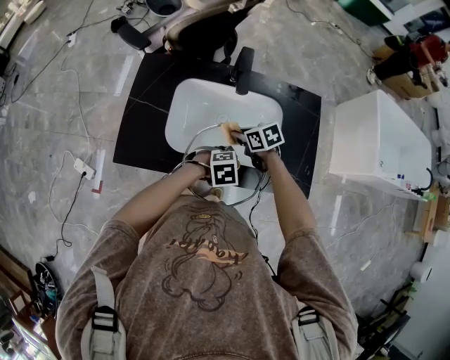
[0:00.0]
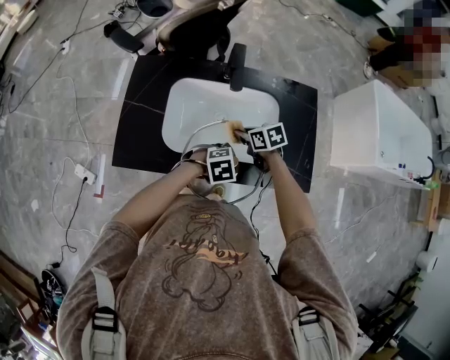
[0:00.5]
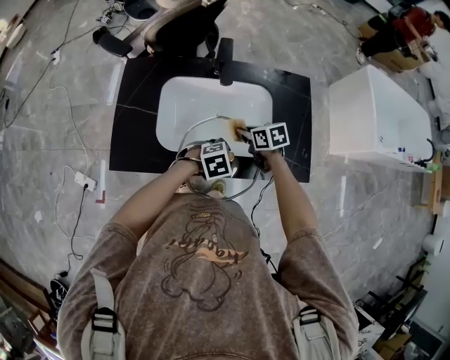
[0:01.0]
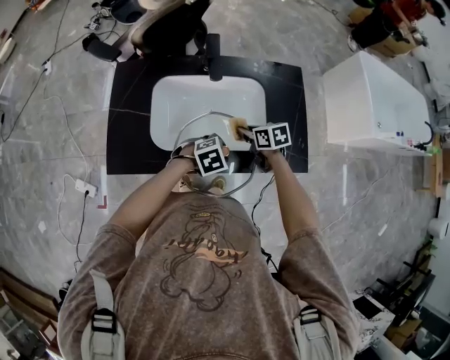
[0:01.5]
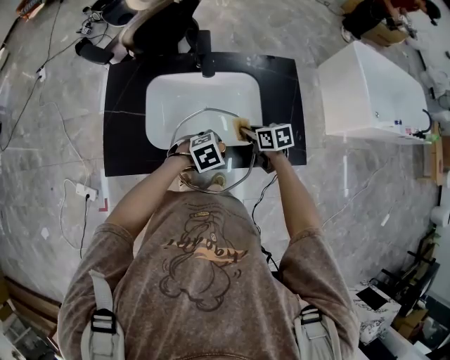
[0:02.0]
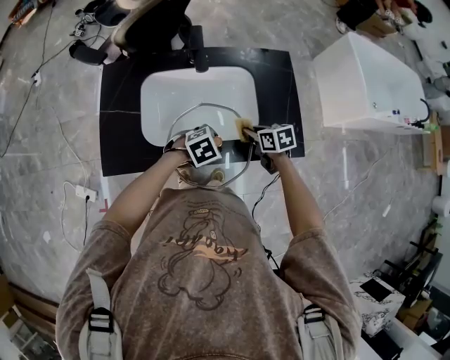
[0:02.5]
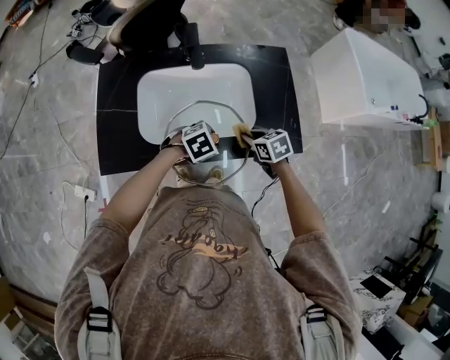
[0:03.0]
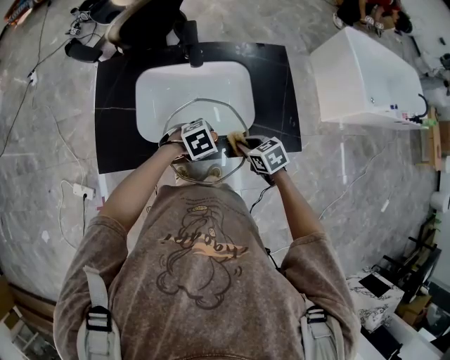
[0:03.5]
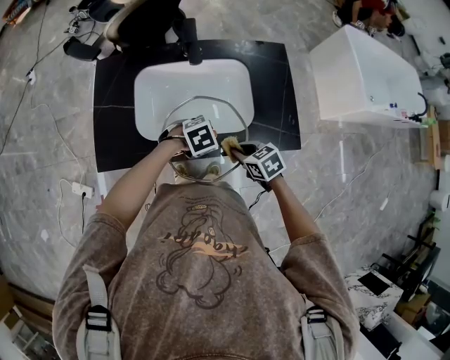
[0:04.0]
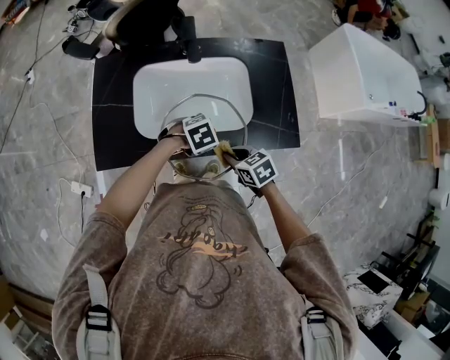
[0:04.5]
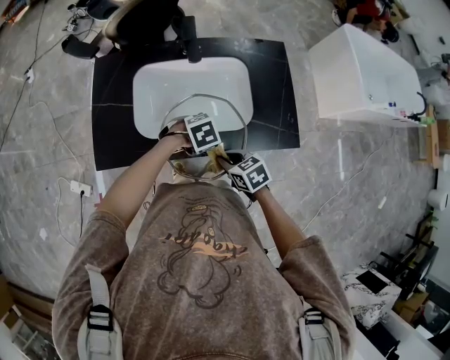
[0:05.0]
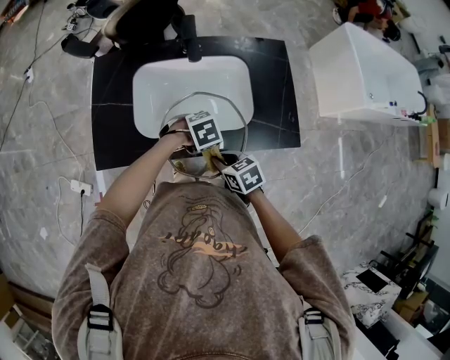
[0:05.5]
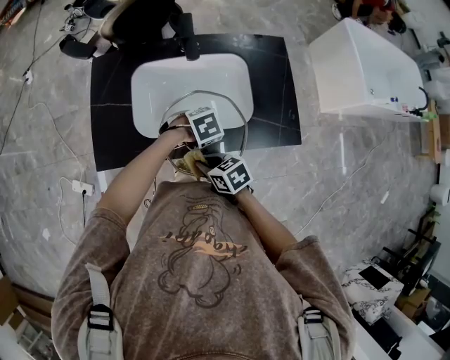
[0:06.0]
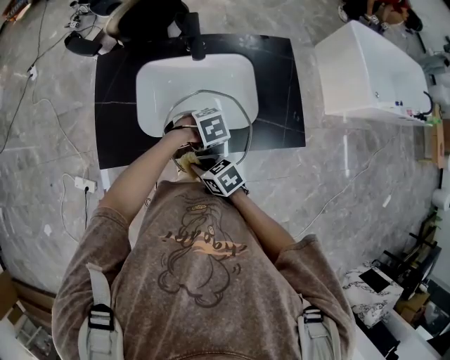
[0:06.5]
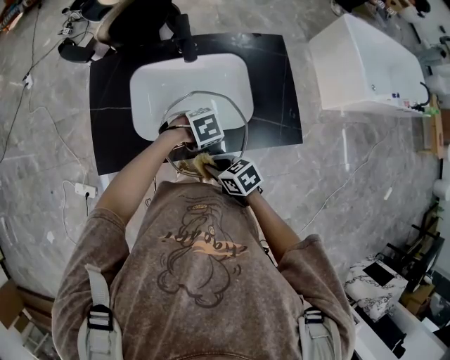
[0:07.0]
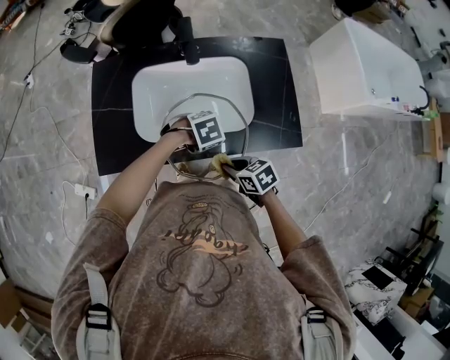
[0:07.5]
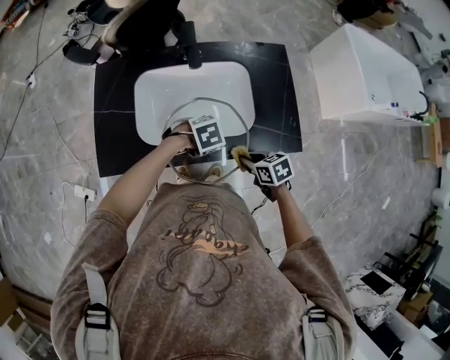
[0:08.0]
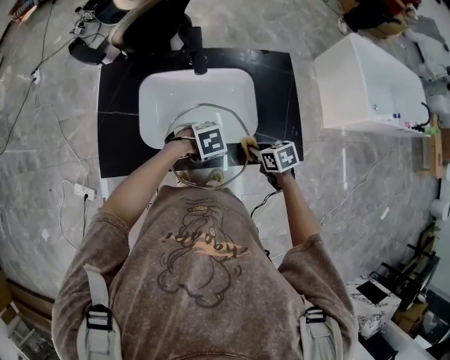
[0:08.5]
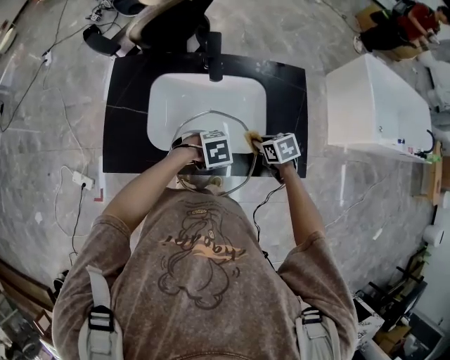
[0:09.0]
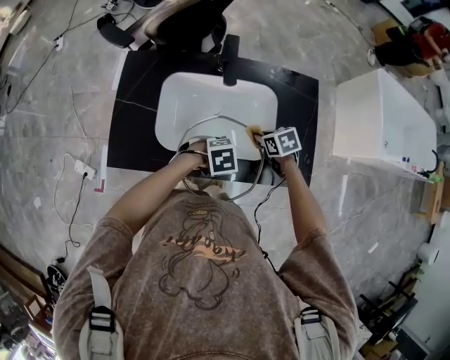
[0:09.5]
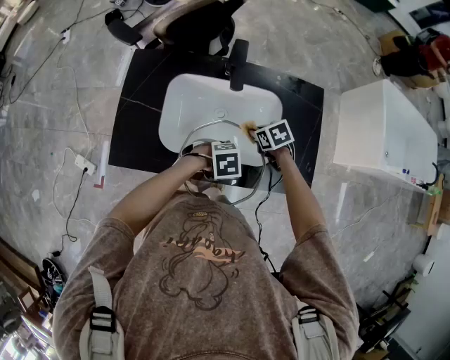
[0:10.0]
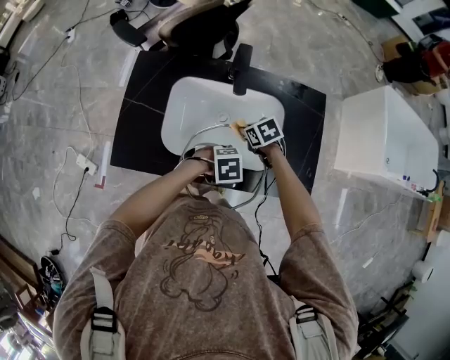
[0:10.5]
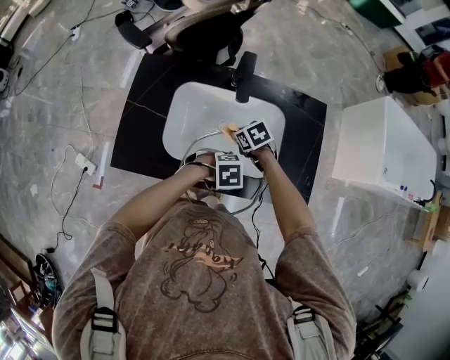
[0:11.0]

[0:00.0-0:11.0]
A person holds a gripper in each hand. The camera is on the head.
0:00.0 to 0:02.0: The right gripper shifts by approximately 10 cm, and swivels about 20 degrees.
0:02.0 to 0:03.5: The right gripper changes place by roughly 10 cm.
0:03.5 to 0:05.5: The right gripper changes place by some 10 cm.
0:07.5 to 0:09.0: The right gripper moves approximately 20 cm.
0:09.0 to 0:11.0: The right gripper moves approximately 15 cm.

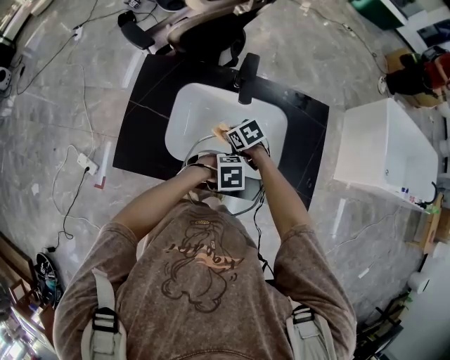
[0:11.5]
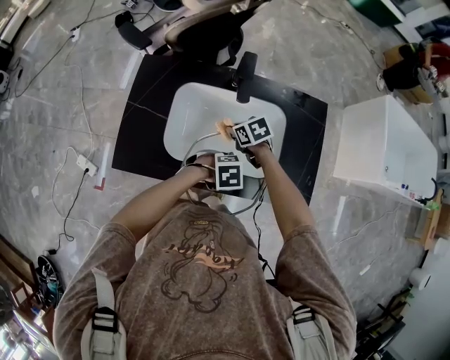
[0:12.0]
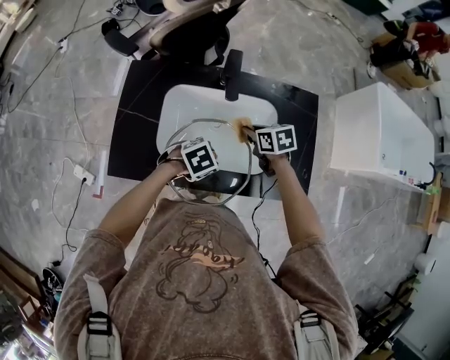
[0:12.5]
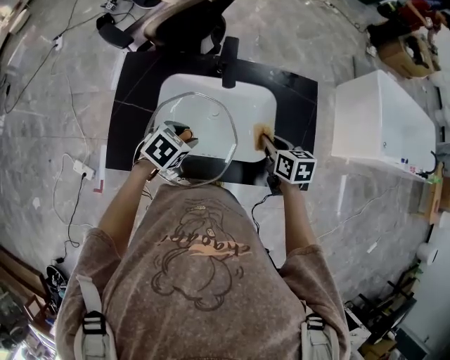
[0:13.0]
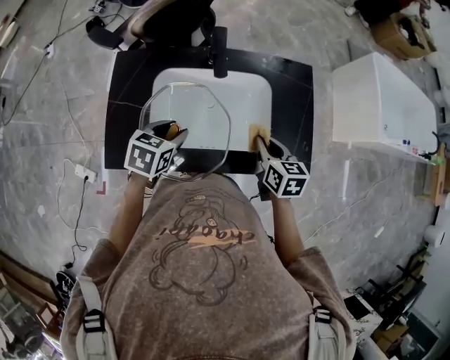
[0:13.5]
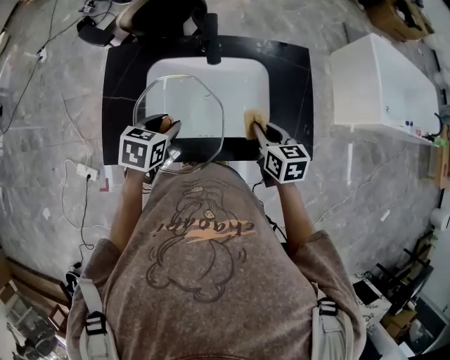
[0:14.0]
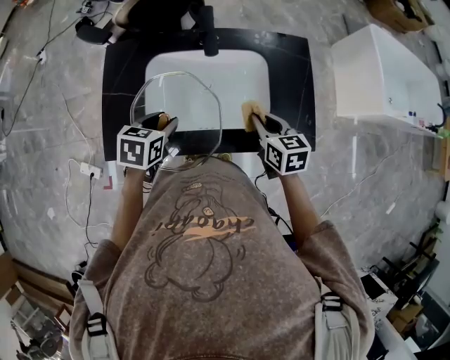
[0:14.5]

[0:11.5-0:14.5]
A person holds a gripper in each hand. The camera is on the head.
0:11.5 to 0:13.0: The left gripper shifts by some 15 cm, and rotates roughly 40 degrees; the right gripper moves about 20 cm, and changes its angle by about 40 degrees.
0:13.0 to 0:14.5: The right gripper goes about 5 cm backward; the left gripper ends up some 5 cm from where it was, and changes its angle by some 20 degrees.

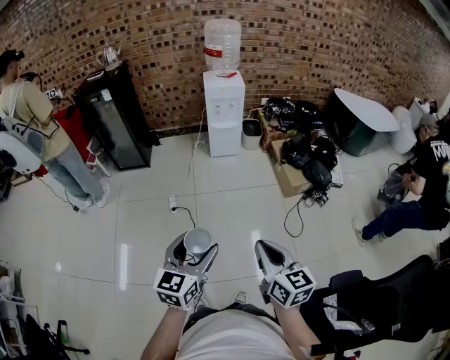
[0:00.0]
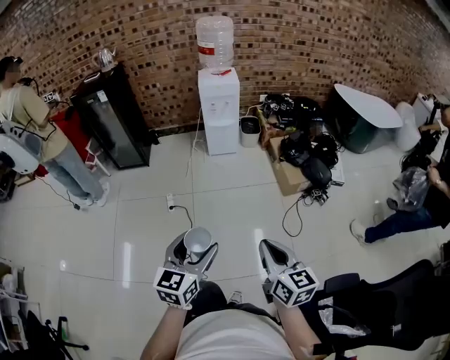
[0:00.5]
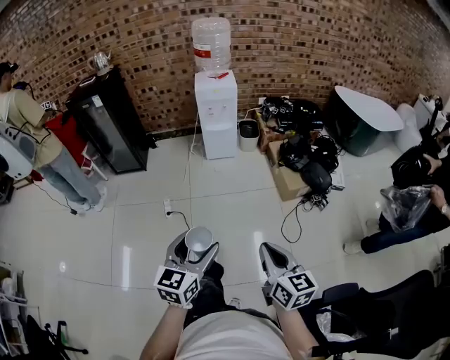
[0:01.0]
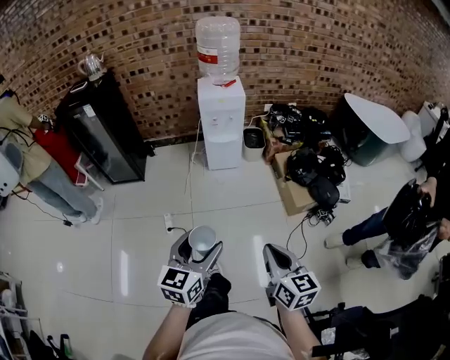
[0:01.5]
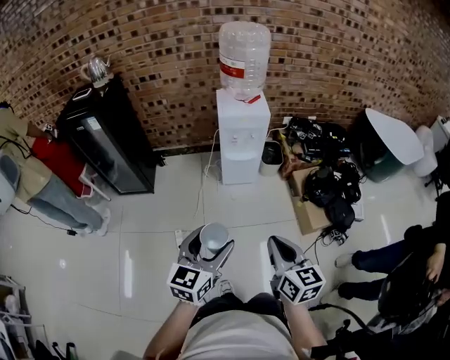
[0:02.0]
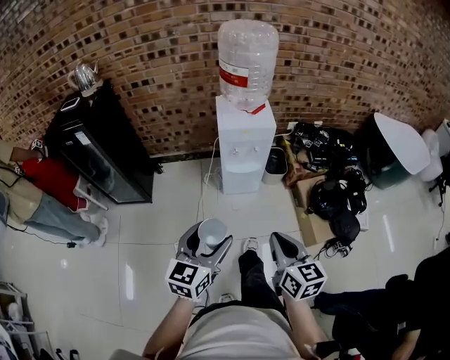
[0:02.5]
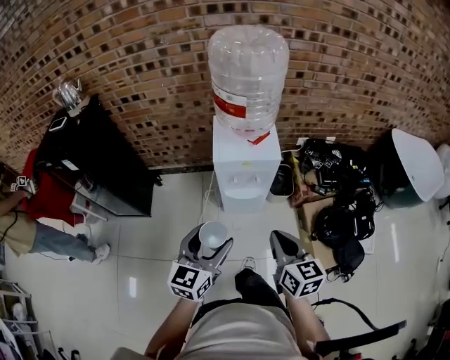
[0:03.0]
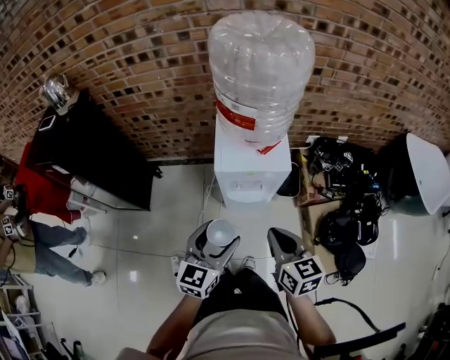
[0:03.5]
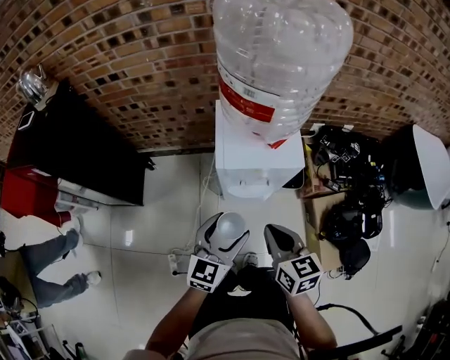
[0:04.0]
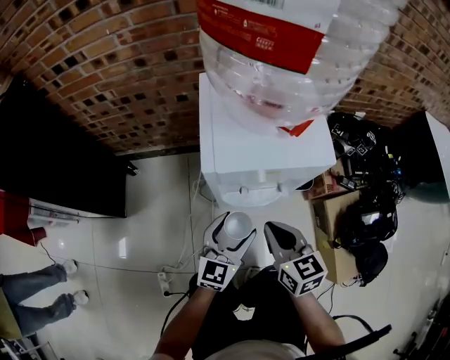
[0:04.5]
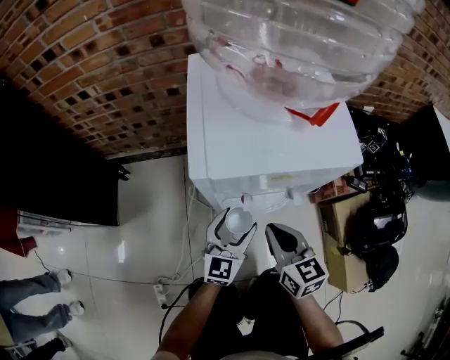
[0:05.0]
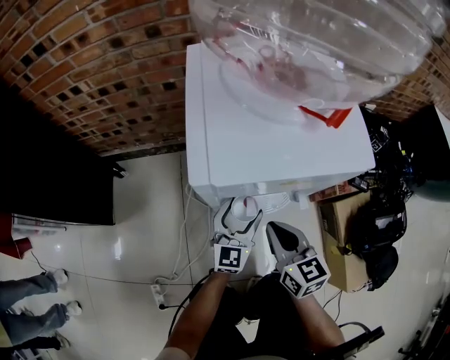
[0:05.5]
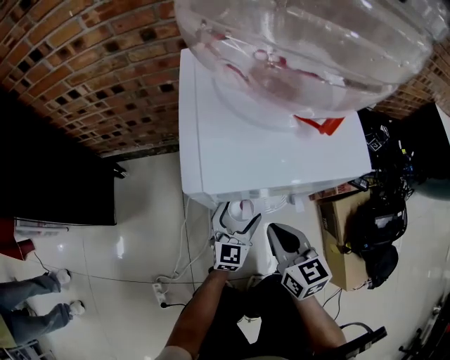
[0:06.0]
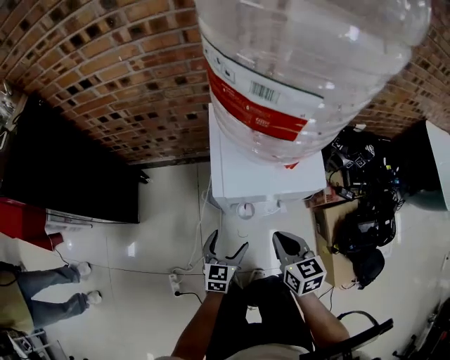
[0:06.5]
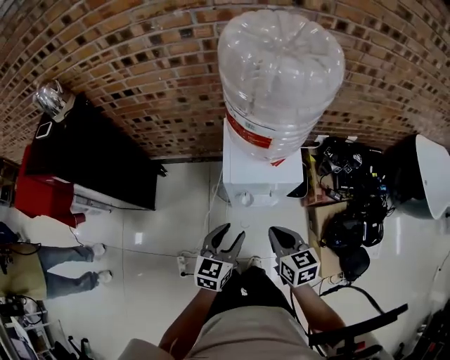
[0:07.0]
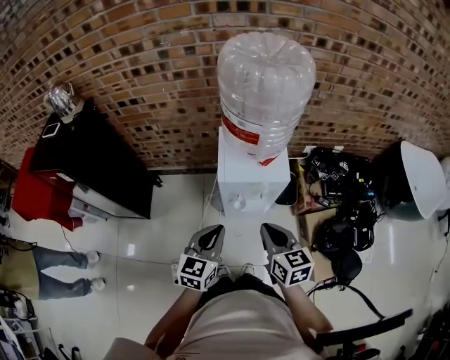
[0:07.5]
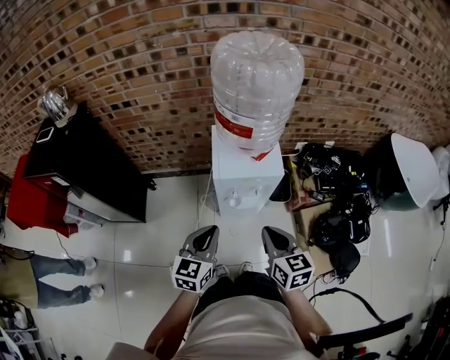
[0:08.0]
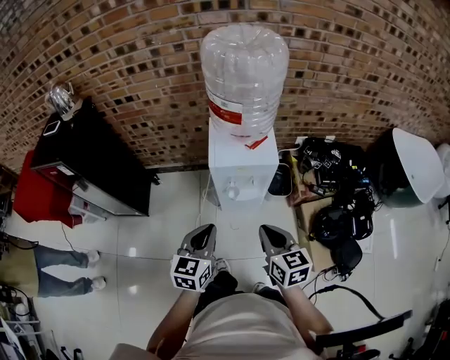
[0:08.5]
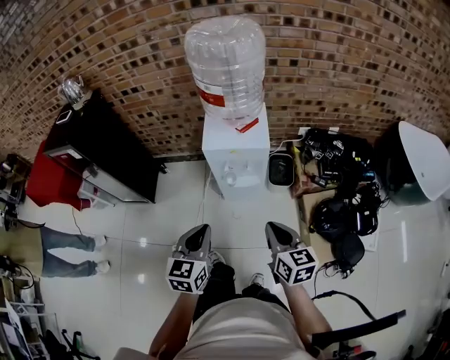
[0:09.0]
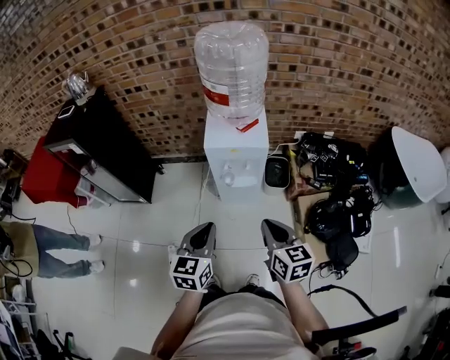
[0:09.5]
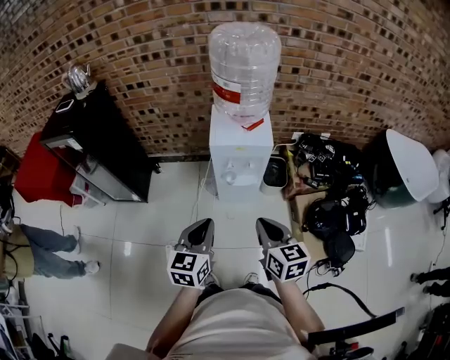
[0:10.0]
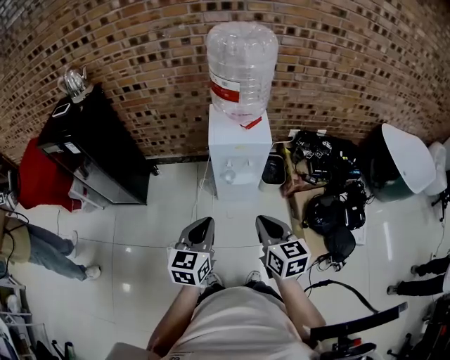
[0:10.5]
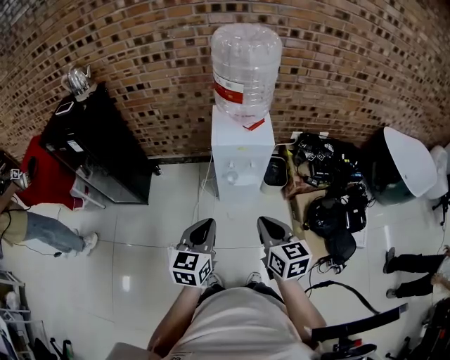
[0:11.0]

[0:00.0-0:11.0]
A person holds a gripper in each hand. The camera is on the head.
0:00.0 to 0:02.0: The pair of grippers is taken forward, roughly 40 cm.
0:02.0 to 0:03.5: The pair of grippers is taken forward, some 50 cm.
0:03.5 to 0:05.5: The two grippers go roughly 40 cm downward and forward.
0:05.5 to 0:07.5: The right gripper shifts about 40 cm upward. The left gripper travels upward and backward by roughly 50 cm, and closes up.
0:07.5 to 0:09.0: The left gripper heads backward, covering some 15 cm, while the right gripper is displaced backward and to the right by about 20 cm.
0:09.0 to 0:11.0: The left gripper goes about 5 cm to the left, while the right gripper travels to the left by approximately 10 cm.

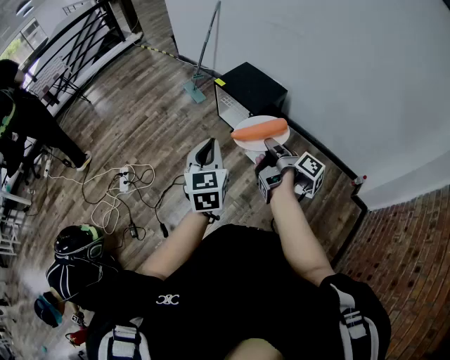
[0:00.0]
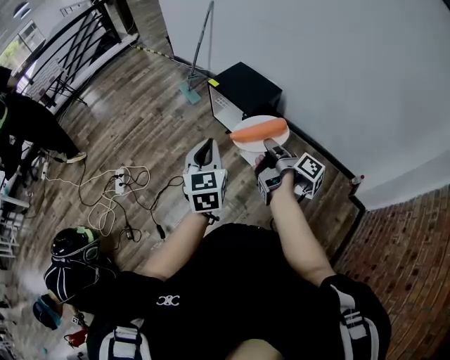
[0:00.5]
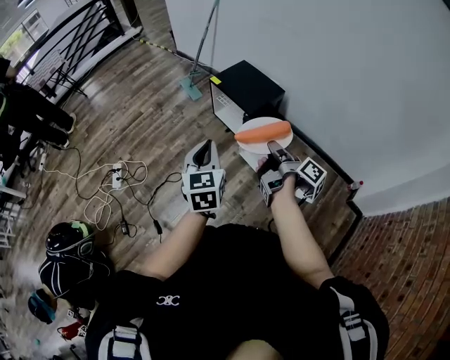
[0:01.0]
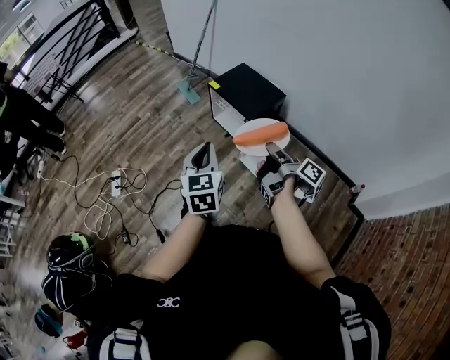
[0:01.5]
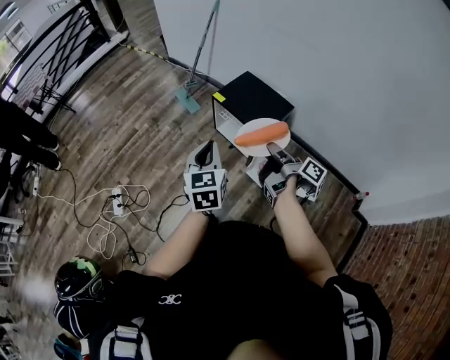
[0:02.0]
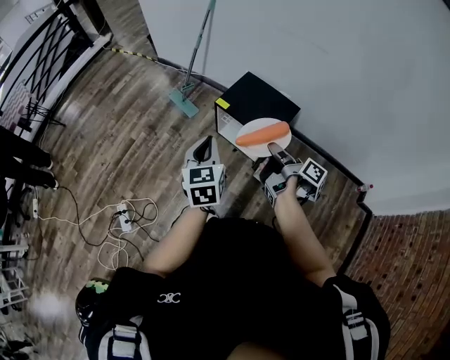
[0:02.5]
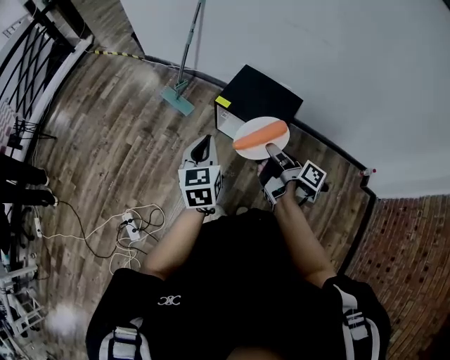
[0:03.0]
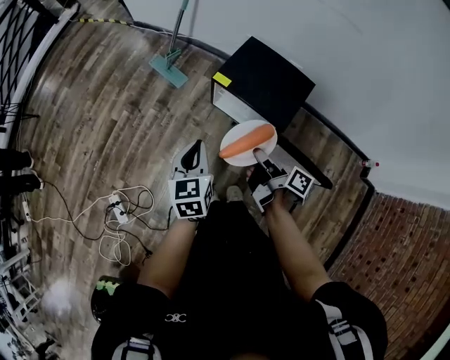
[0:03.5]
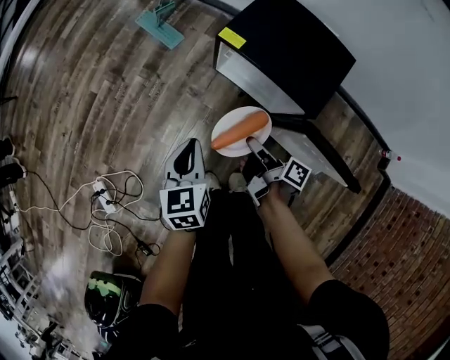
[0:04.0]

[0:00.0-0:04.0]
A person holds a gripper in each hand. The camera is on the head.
0:00.0 to 0:02.0: The left gripper shifts by approximately 25 cm.
0:02.0 to 0:04.0: The left gripper travels downward by approximately 35 cm.
